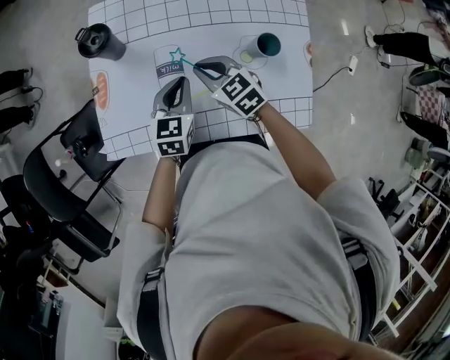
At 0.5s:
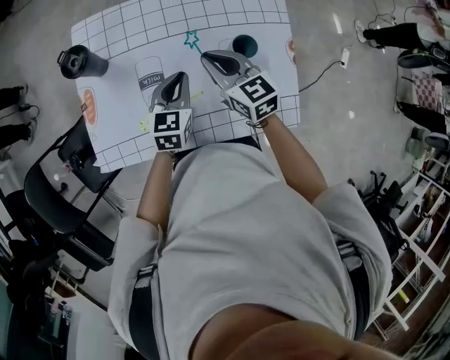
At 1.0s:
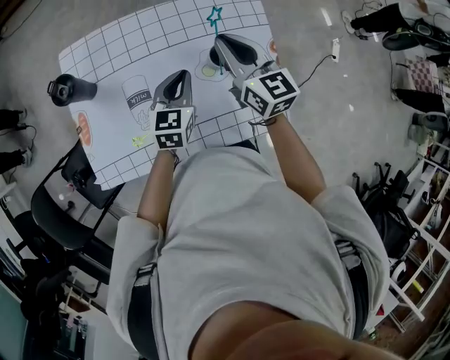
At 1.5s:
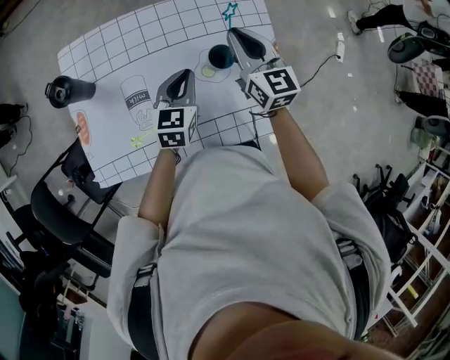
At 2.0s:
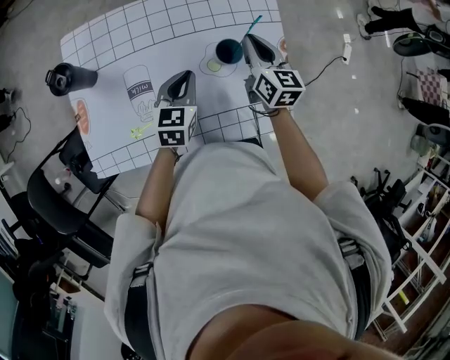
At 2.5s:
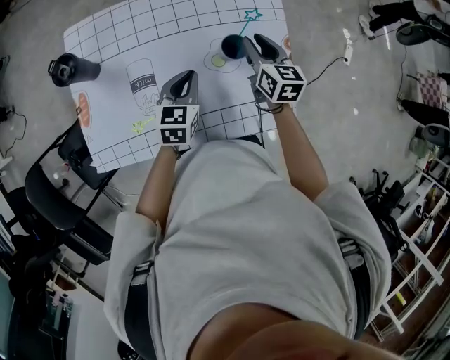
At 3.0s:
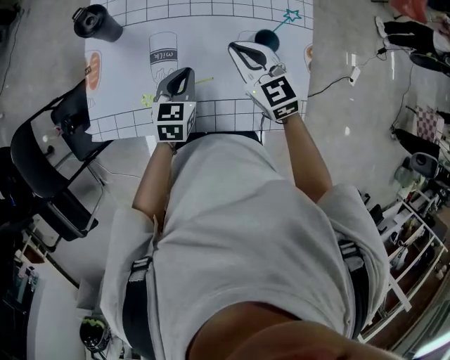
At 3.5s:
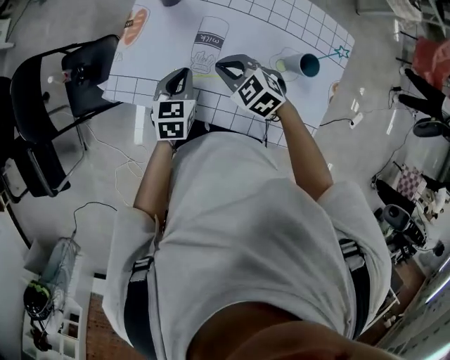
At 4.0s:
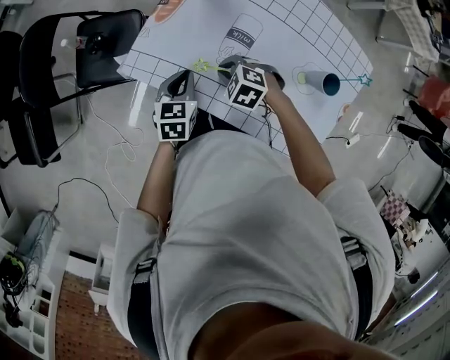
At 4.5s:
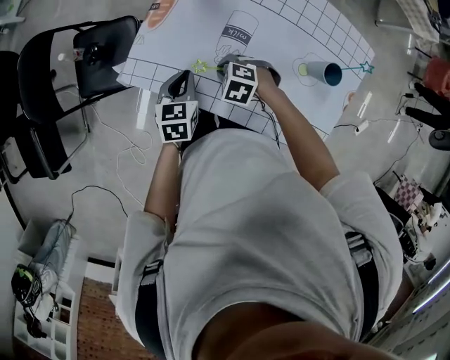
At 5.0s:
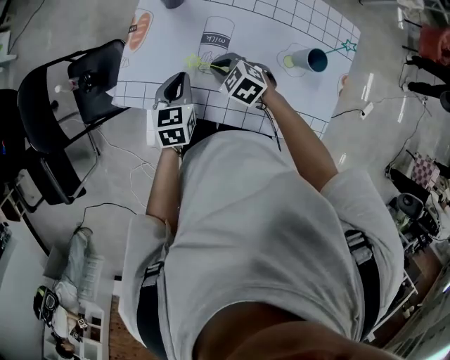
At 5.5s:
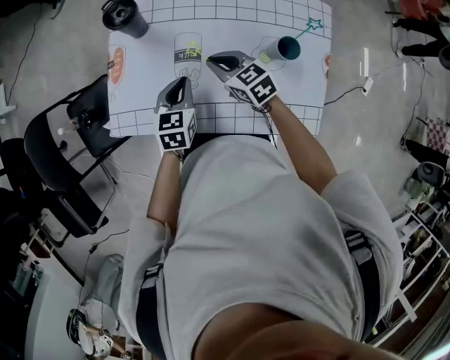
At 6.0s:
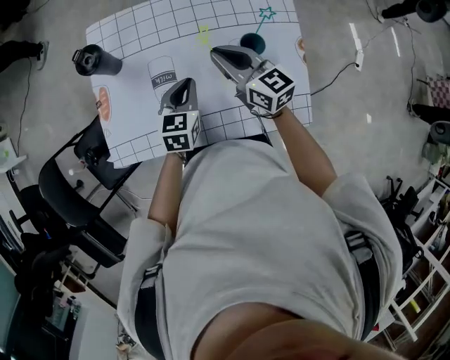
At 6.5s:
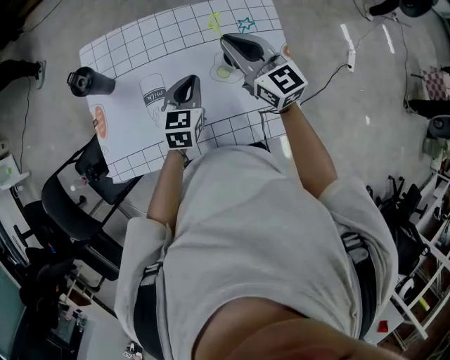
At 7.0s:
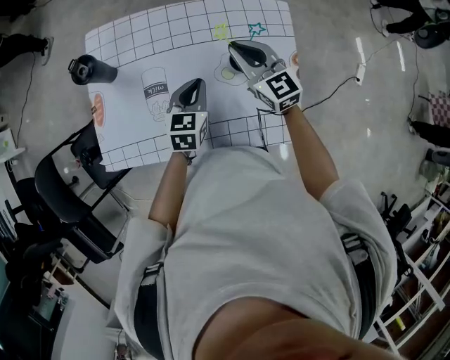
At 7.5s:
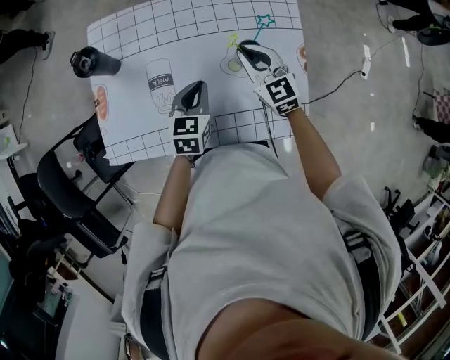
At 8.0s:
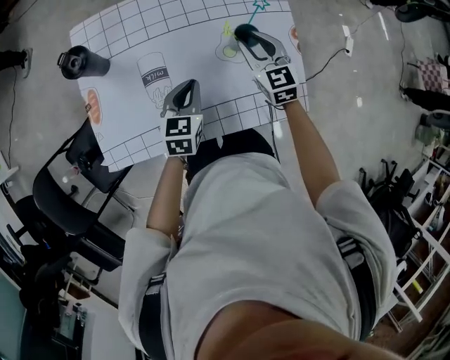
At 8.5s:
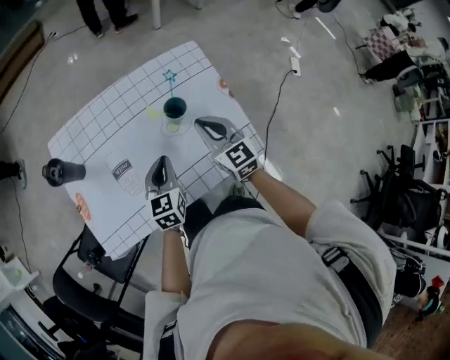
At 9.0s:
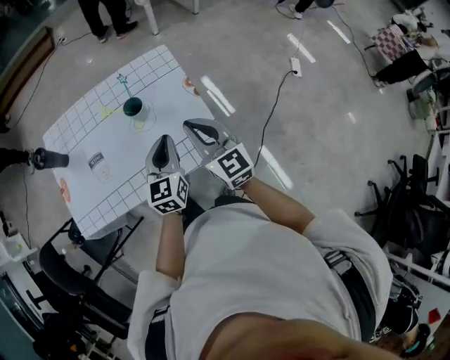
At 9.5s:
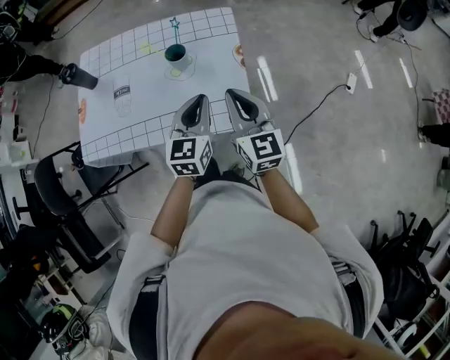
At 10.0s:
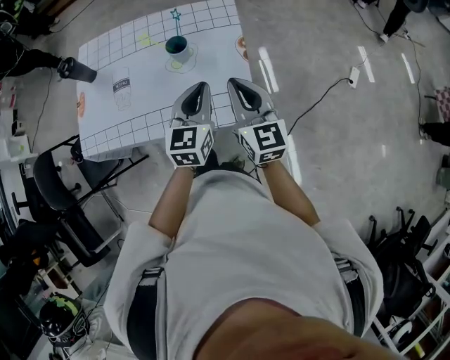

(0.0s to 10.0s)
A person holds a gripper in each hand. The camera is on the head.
0.0s - 2.0s: The left gripper moves to the right, approximately 10 cm; the right gripper moves to the right, some 25 cm, and changes its angle by roughly 50 degrees.
2.0s - 4.0s: The right gripper moves some 40 cm, tilts its fingers approximately 50 degrees downward, and opens, then closes again; the left gripper changes place by approximately 35 cm, and swivels roughly 40 degrees.
4.0s - 6.0s: The left gripper changes place by approximately 25 cm, and rotates some 40 degrees. Meanwhile the right gripper shifts by some 30 cm, and angles its fingers upward, by some 60 degrees.
6.0s - 8.0s: The right gripper is displaced to the right and downward by roughly 10 cm, swivels approximately 30 degrees, and opens its fingers.
8.0s - 10.0s: The left gripper moves to the right and upward, some 30 cm, and changes its angle by some 20 degrees, while the right gripper is displaced to the right, backward and upward by about 30 cm, swivels some 20 degrees, and closes.

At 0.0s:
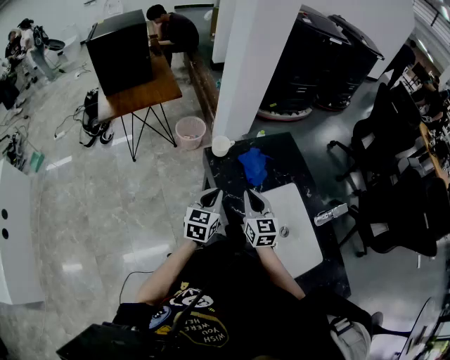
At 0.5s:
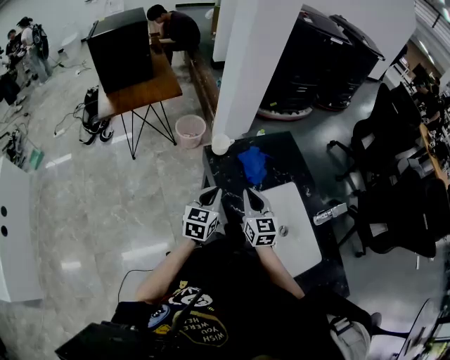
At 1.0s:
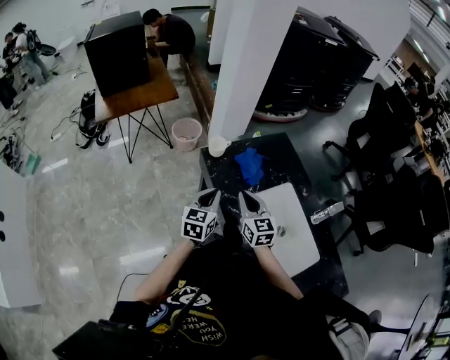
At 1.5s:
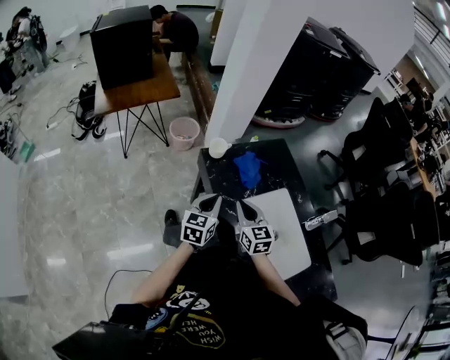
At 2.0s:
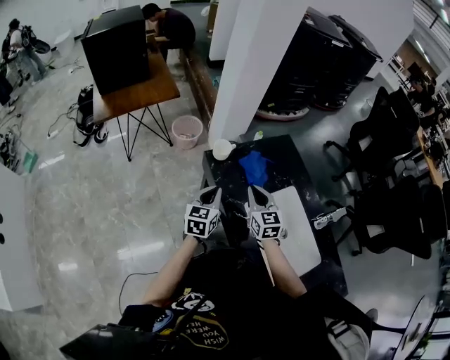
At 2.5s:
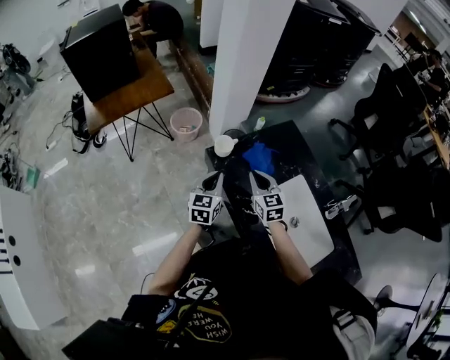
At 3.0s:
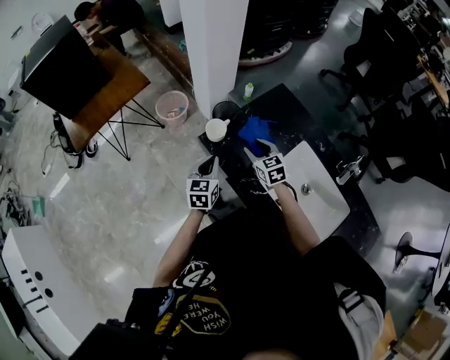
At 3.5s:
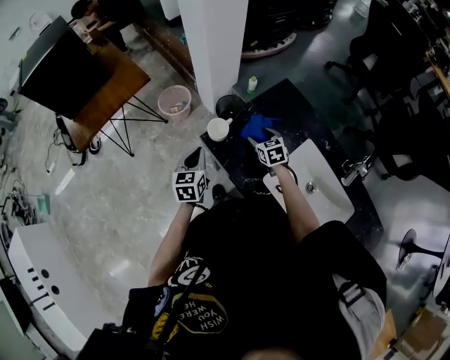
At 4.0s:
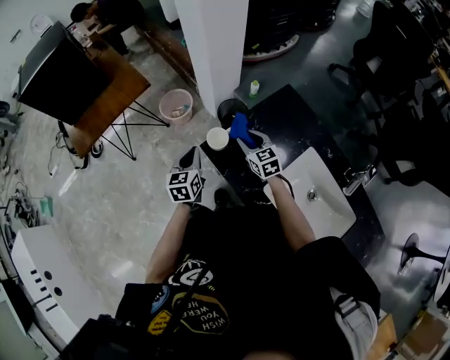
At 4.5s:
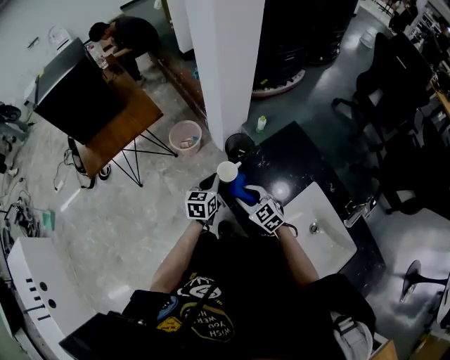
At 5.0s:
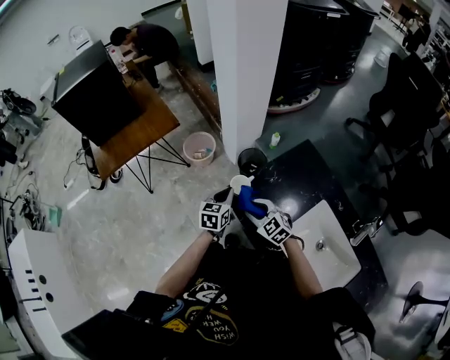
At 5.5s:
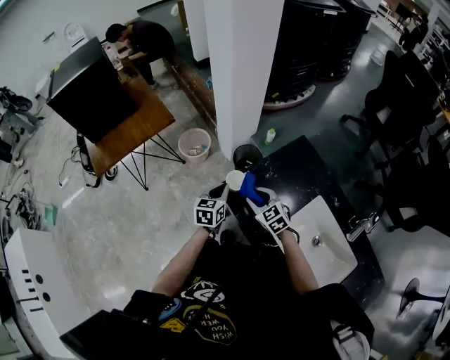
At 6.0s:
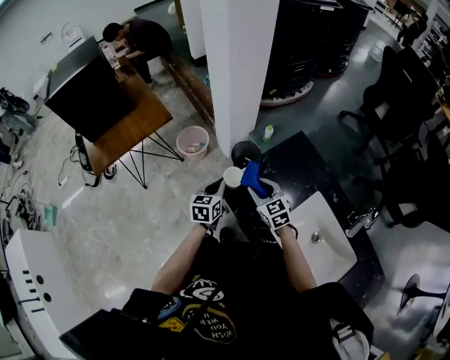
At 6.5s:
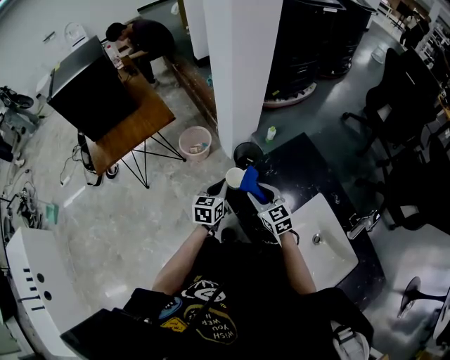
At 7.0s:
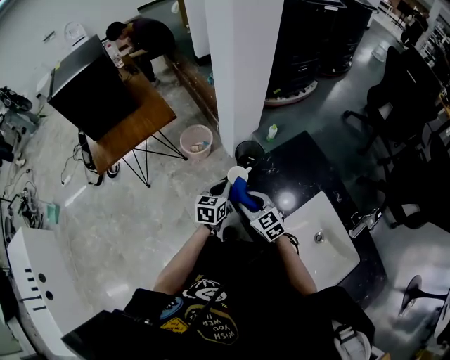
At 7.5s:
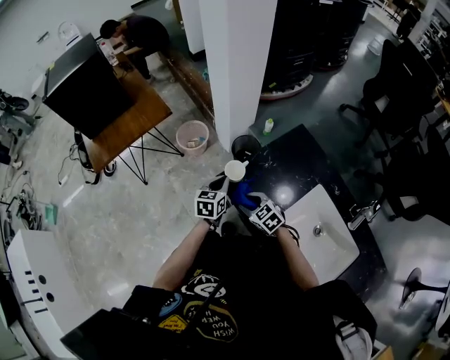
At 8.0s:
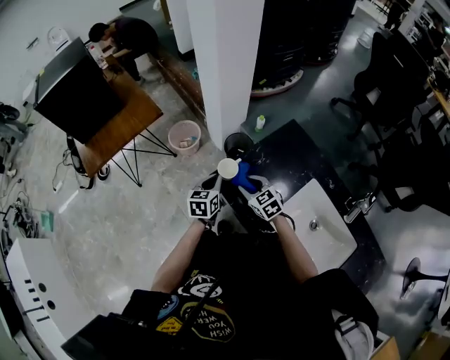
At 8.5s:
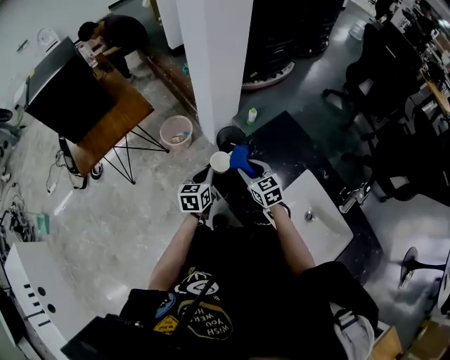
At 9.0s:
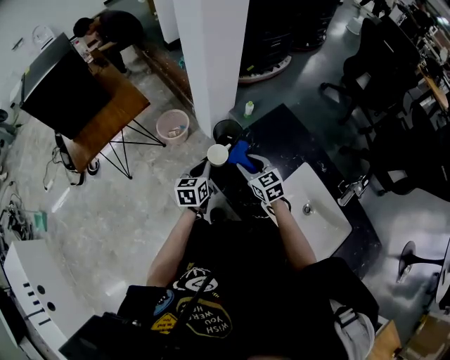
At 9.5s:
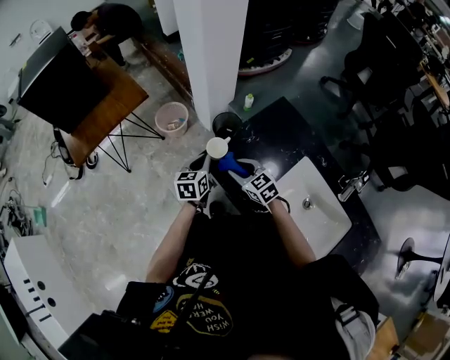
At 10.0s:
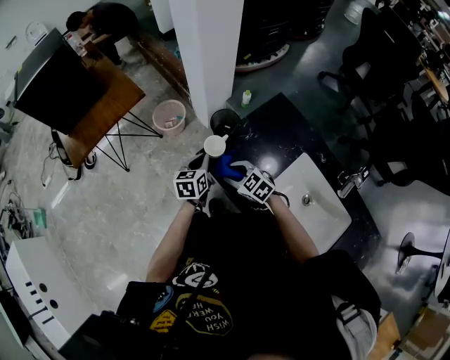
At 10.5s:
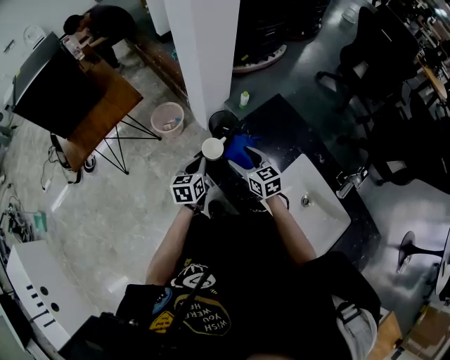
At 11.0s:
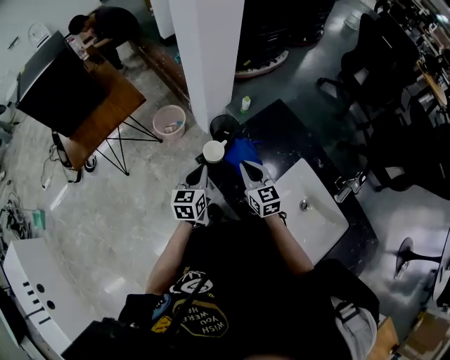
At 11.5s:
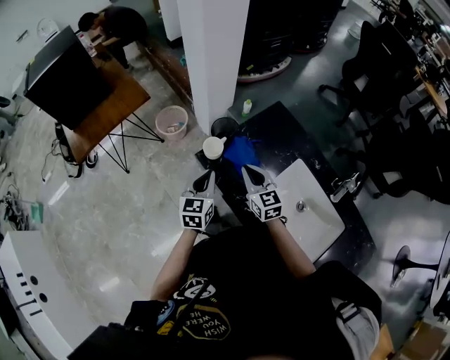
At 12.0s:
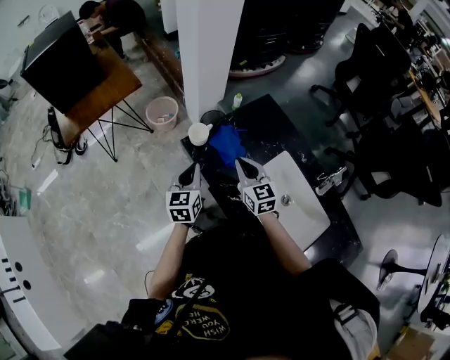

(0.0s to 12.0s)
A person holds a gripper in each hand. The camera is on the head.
0.0s - 2.0s: The grippers make only small movements.
2.0s - 4.0s: The left gripper is displaced forward and to the left by roughly 20 cm, while the right gripper goes approximately 20 cm forward and downward, and opens up.
10.0s - 12.0s: The right gripper shifts roughly 15 cm upward and to the right, changes its angle by roughly 40 degrees, and closes up; the left gripper moves backward and upward, roughly 15 cm.

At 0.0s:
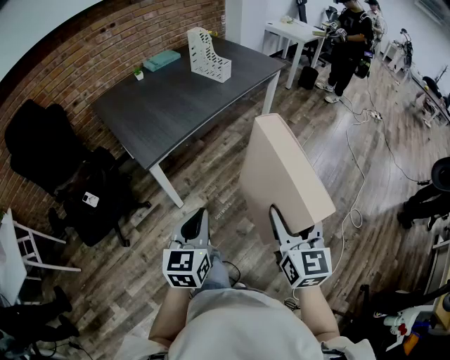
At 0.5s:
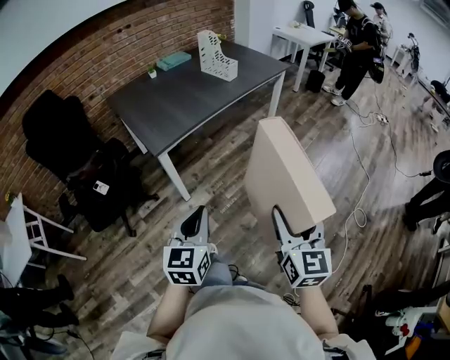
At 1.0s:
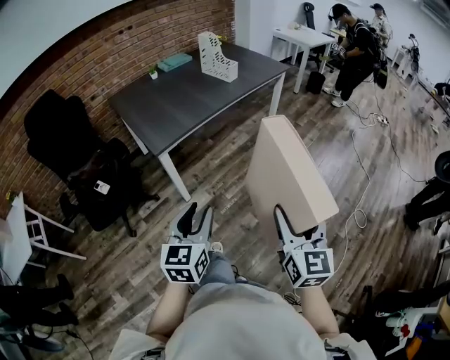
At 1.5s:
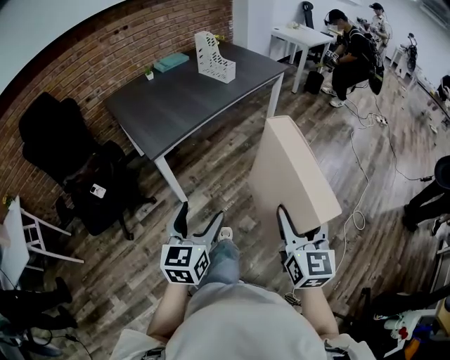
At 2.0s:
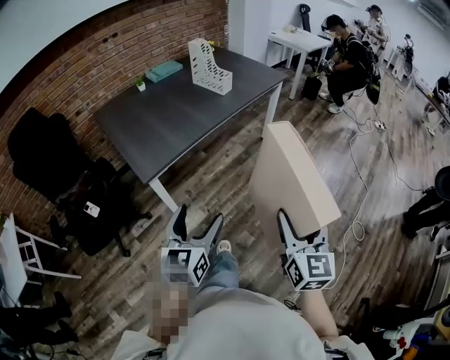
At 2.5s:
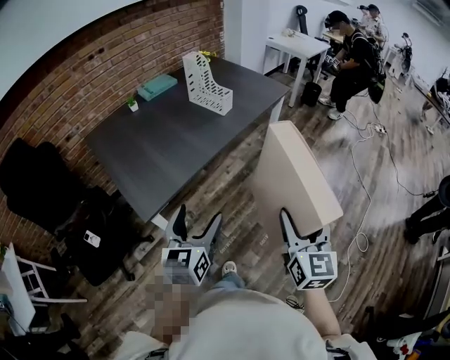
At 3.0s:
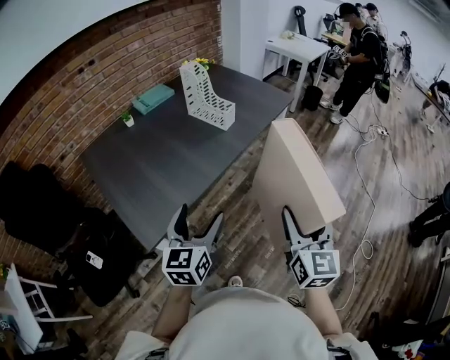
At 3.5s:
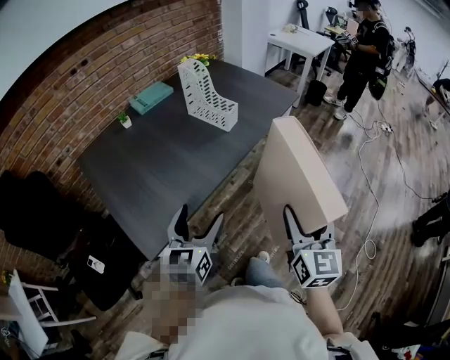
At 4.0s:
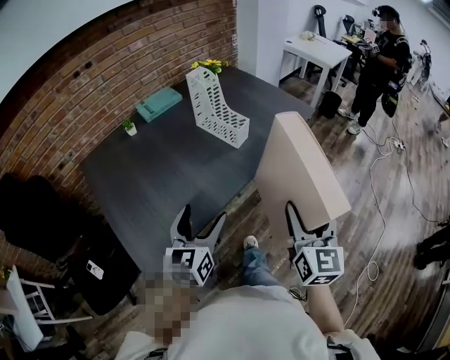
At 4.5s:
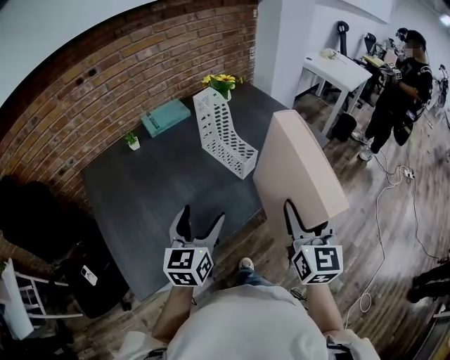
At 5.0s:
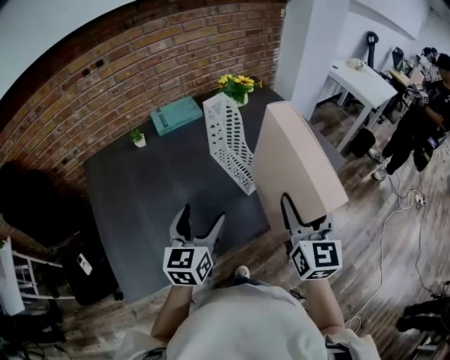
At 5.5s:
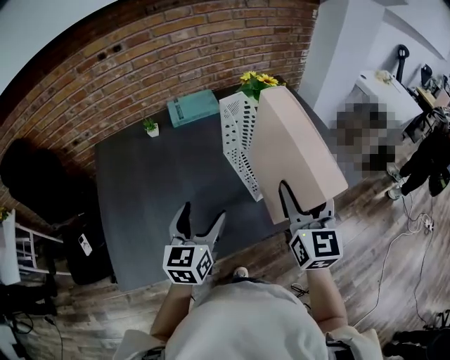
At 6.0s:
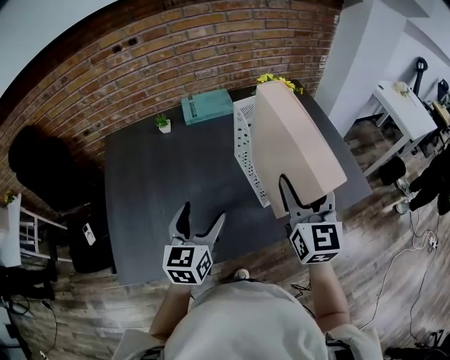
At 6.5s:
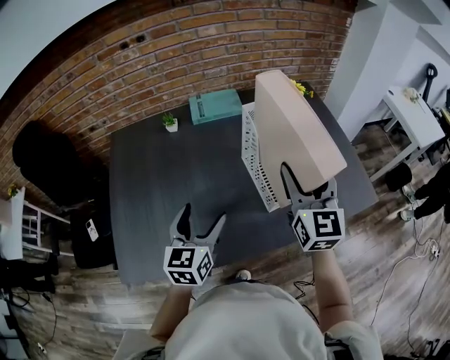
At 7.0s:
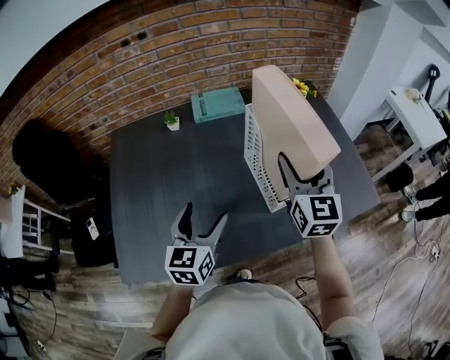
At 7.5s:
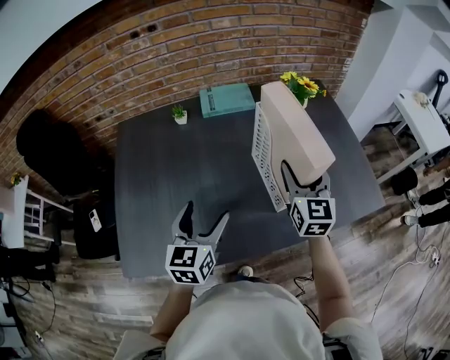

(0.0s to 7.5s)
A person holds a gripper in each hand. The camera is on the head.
0.0s - 2.0s: The left gripper travels forward by about 5 cm, and opens; the right gripper moves about 10 cm backward and comes back.
2.0s - 4.0s: The pair of grippers is taken forward, approximately 40 cm.
4.0s - 5.5s: The right gripper goes about 35 cm forward, and swivels some 30 degrees. The left gripper goes approximately 20 cm forward, and turns by approximately 20 degrees.
5.5s - 7.5s: The right gripper shifts some 15 cm forward and downward. The left gripper travels to the left by approximately 5 cm.
